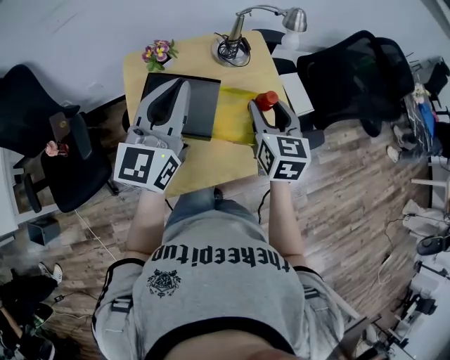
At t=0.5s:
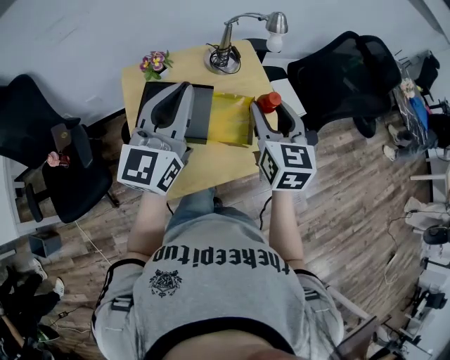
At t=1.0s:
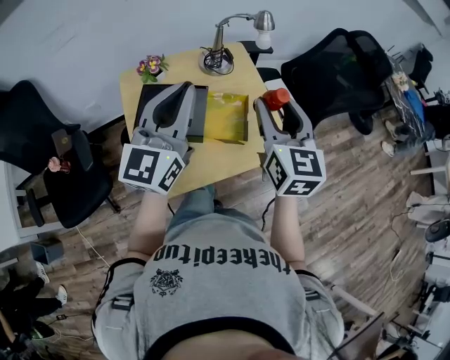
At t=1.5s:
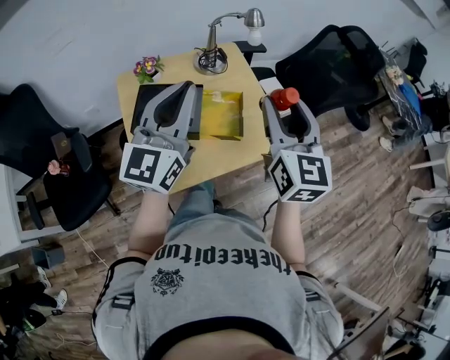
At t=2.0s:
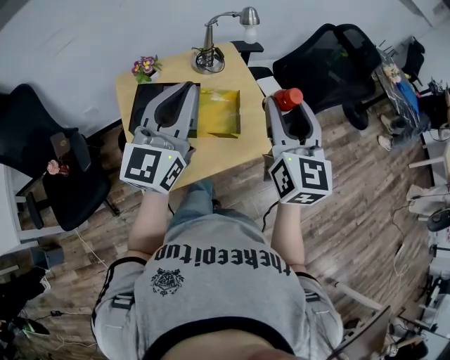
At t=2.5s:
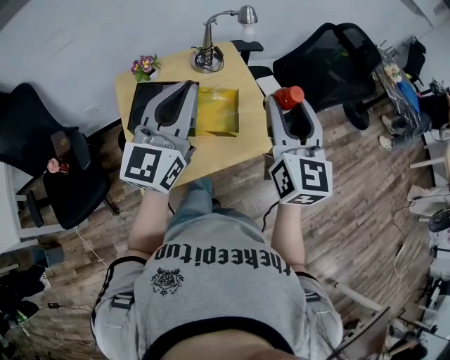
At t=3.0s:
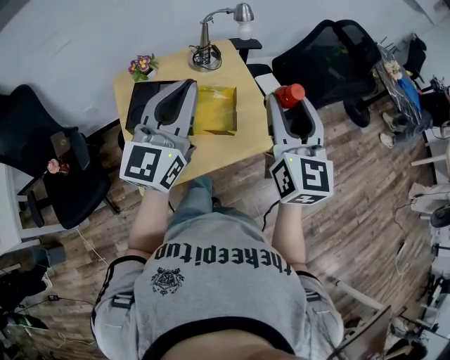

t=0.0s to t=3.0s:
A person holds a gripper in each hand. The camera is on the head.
t=0.0s to t=1.5s: The left gripper moves backward, to the right and upward, some 10 cm; the right gripper is displaced upward, backward and to the right by about 20 cm, and rotates about 20 degrees.
t=1.5s to t=3.0s: The grippers make only small movements.

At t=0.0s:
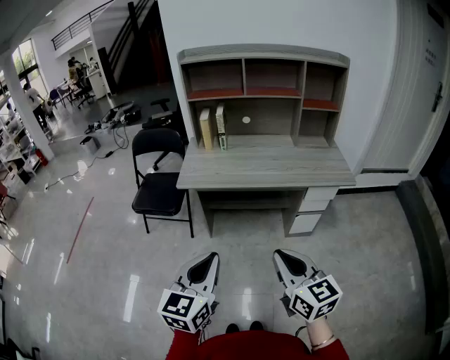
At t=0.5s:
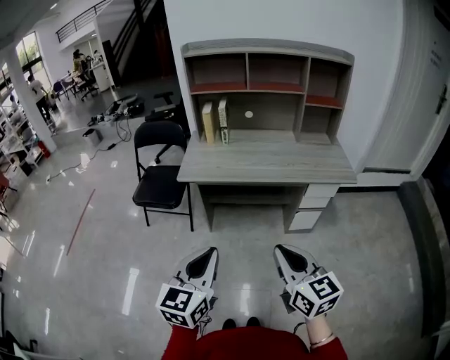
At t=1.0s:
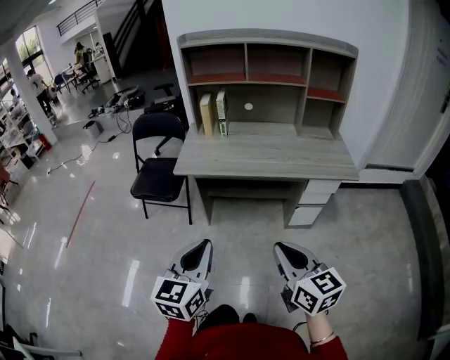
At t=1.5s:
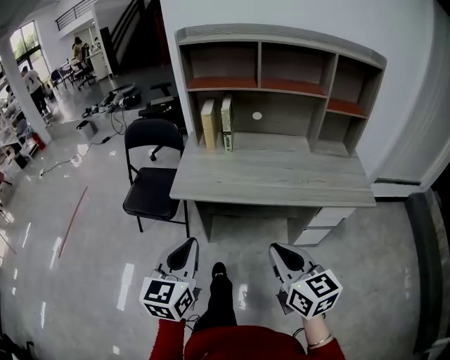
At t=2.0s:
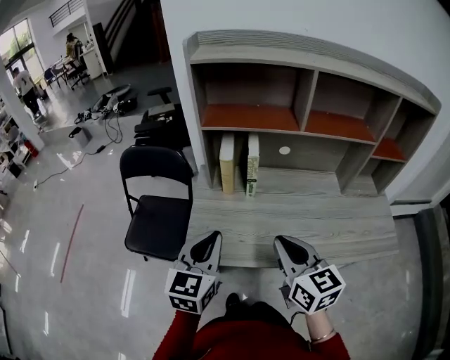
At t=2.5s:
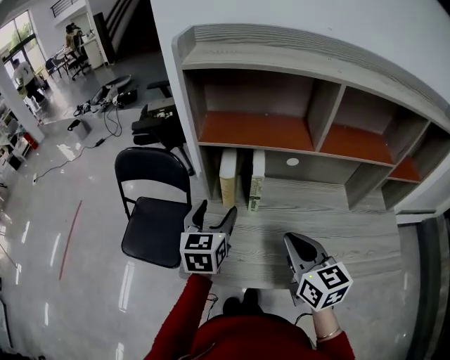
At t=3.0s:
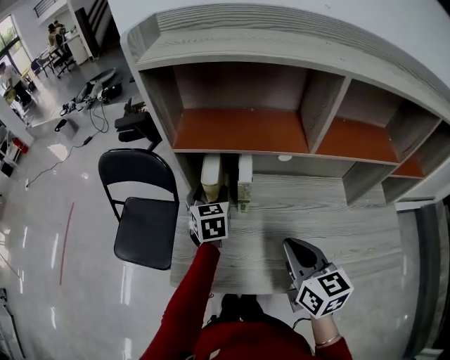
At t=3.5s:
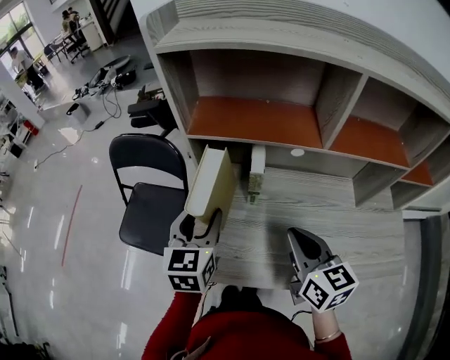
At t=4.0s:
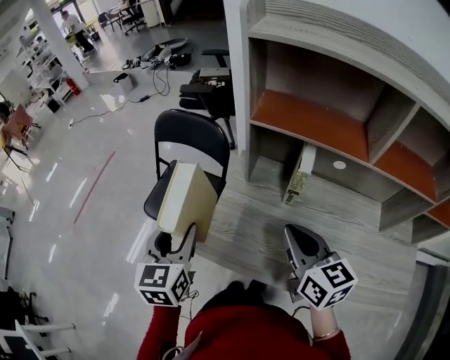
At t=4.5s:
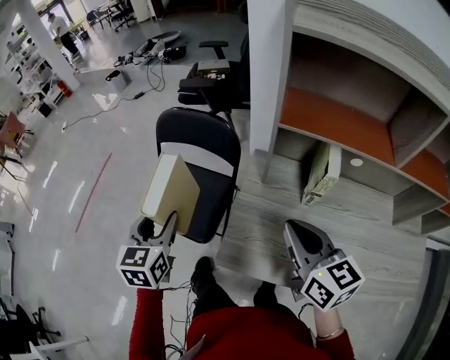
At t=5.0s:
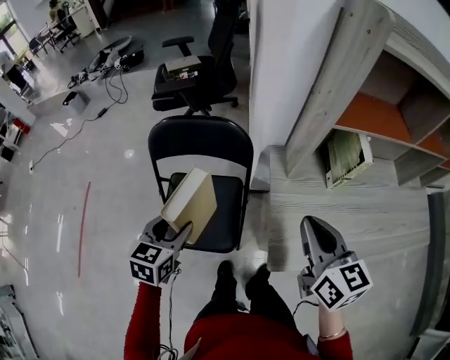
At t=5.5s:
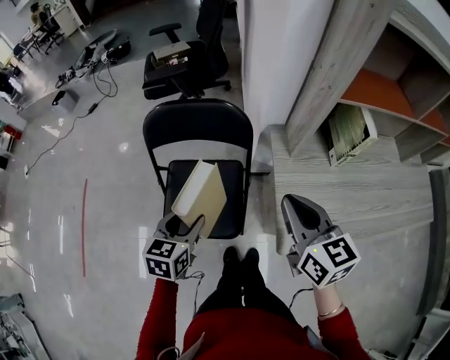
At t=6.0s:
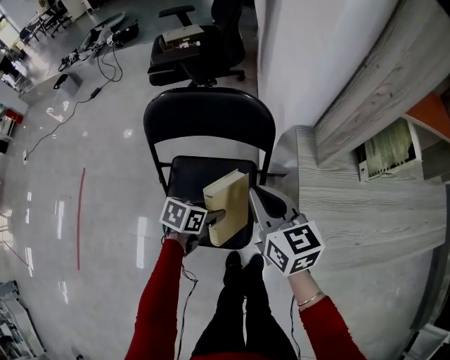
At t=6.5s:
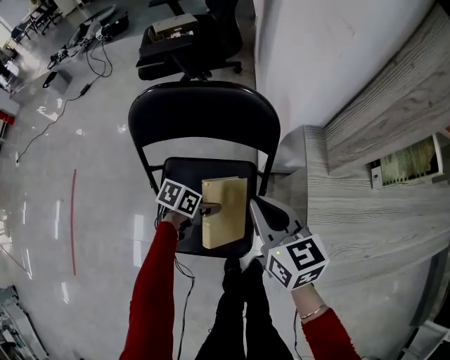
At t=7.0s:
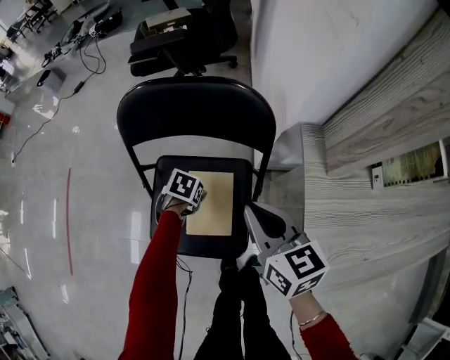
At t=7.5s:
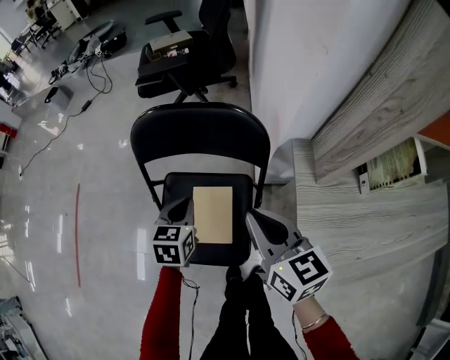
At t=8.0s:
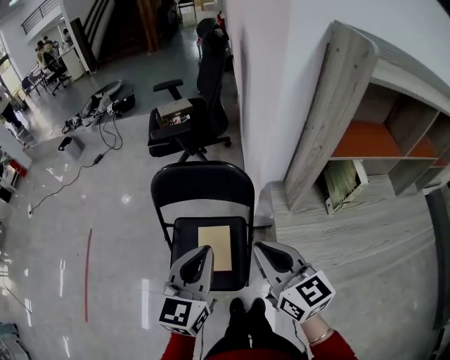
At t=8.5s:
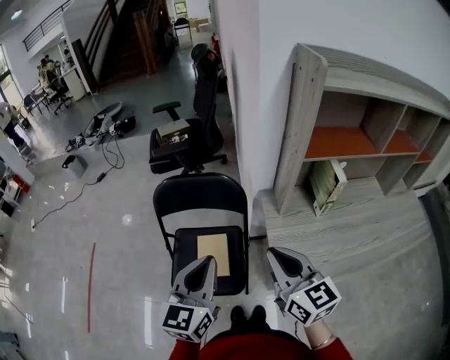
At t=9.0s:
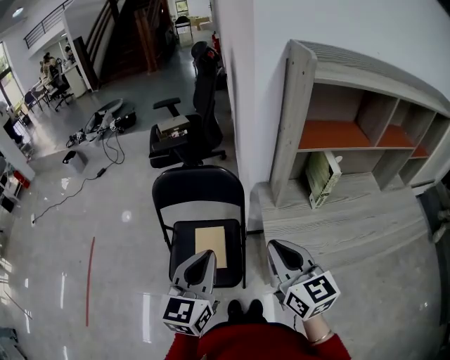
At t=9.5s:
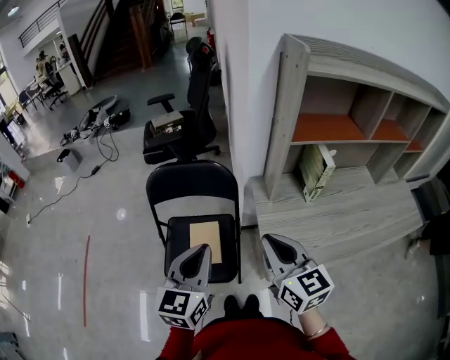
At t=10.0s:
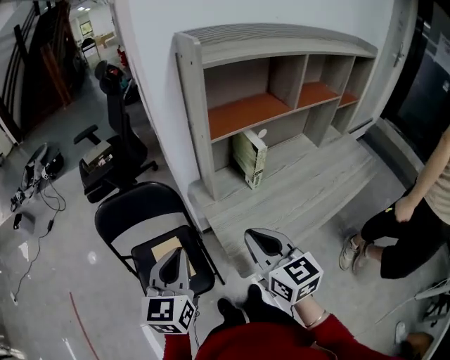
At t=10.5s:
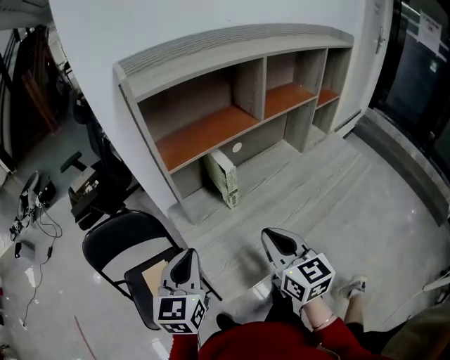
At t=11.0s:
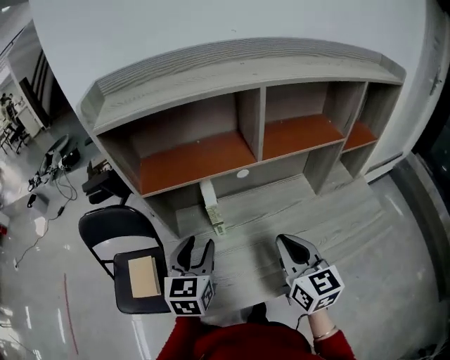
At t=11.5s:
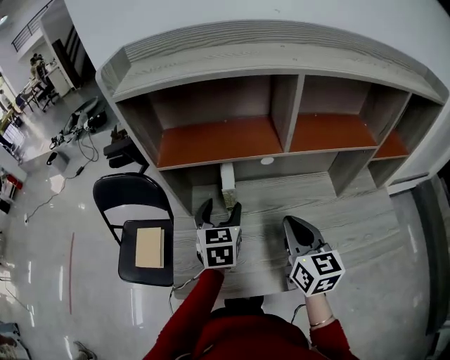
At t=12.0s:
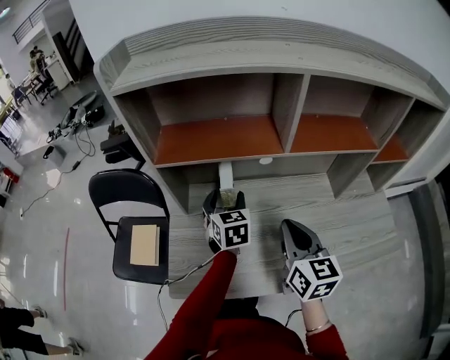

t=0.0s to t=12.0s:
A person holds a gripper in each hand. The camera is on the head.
t=0.0s to t=2.0s: The pair of grippers is taken forward, roughly 50 cm.
t=2.0s to t=4.0s: The left gripper moves to the left, roughly 15 cm, moves approximately 30 cm forward and comes back, changes its angle by approximately 30 degrees, and opens its fingers, while the right gripper goes some 10 cm forward.
t=4.0s to t=6.0s: The right gripper moves some 40 cm. Meanwhile the left gripper goes about 35 cm downward, and rotates roughly 70 degrees.
t=6.0s to t=8.0s: The left gripper is displaced upward by roughly 35 cm, tips its fingers upward by approximately 40 degrees, and closes. The right gripper moves upward, about 15 cm.
t=8.0s to t=10.0s: The left gripper heads to the right, covering roughly 10 cm. Meanwhile the right gripper goes some 15 cm to the right and backward, and changes its angle by roughly 30 degrees.
t=10.0s to t=12.0s: The left gripper shifts by approximately 40 cm, swivels about 30 degrees, and opens up. Meanwhile the right gripper moves approximately 30 cm.

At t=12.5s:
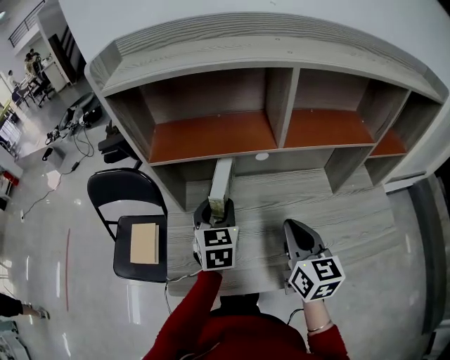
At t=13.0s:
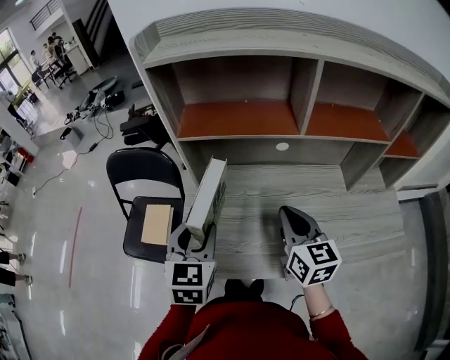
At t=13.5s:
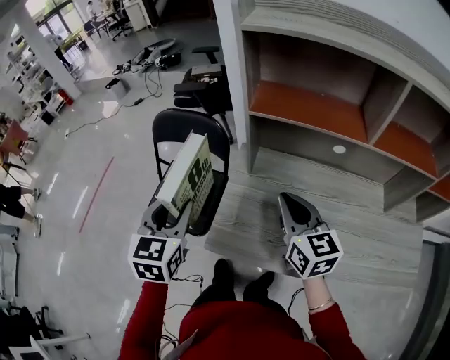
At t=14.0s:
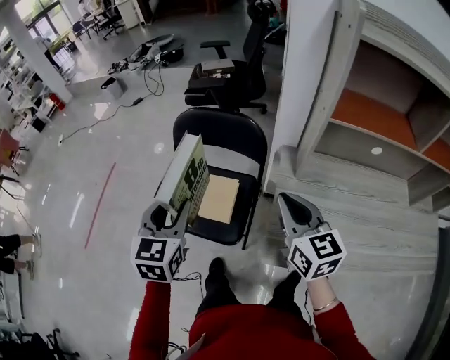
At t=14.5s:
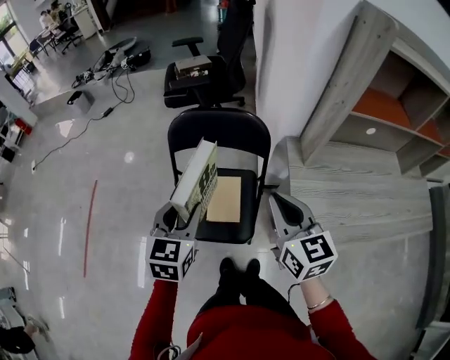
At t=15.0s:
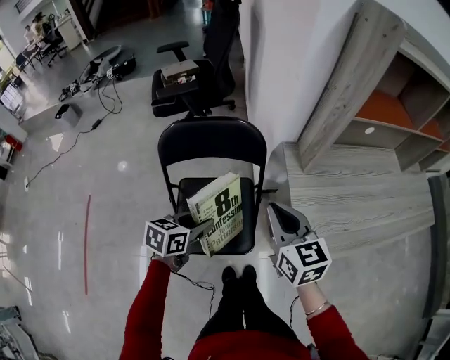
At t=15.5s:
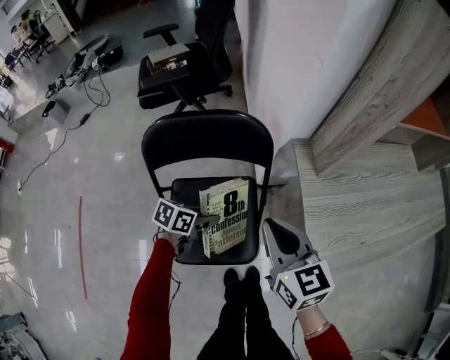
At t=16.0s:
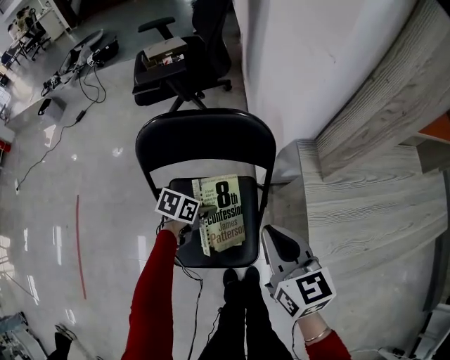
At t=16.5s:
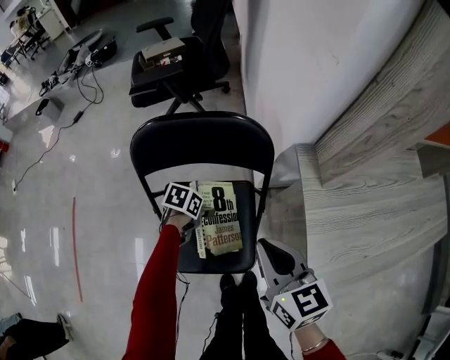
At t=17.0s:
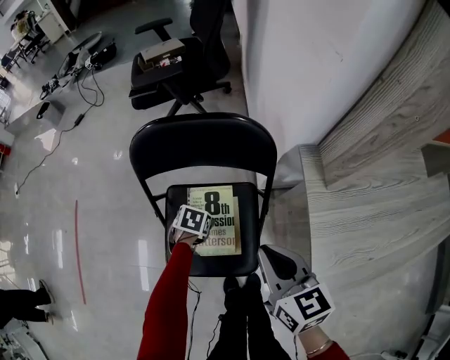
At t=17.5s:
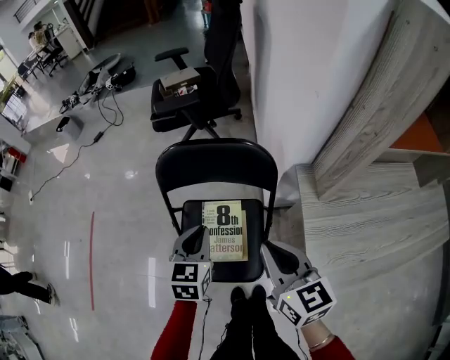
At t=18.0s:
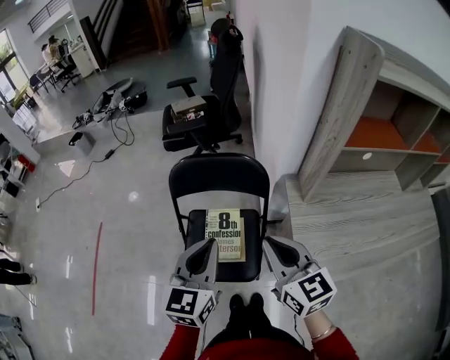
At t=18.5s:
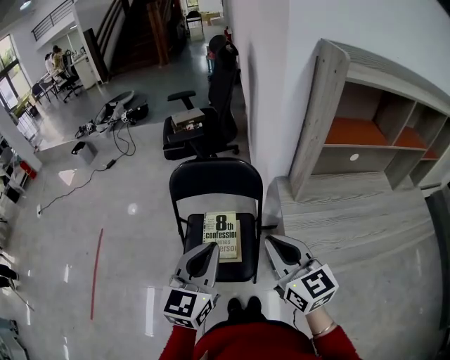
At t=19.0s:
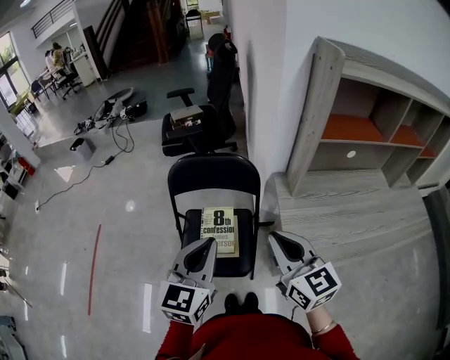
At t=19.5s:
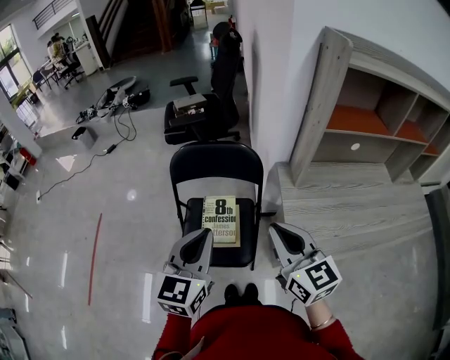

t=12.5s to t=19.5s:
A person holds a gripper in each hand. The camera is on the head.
t=12.5s to t=14.5s: The pair of grippers is taken to the left, some 50 cm.
t=14.5s to t=16.0s: The left gripper heads downward, covering approximately 30 cm, and swivels about 60 degrees; the right gripper is displaced downward by approximately 10 cm.
t=16.0s to t=17.5s: The left gripper travels upward by some 20 cm, rotates approximately 50 degrees, and closes its fingers.
t=17.5s to t=19.5s: The left gripper goes approximately 25 cm upward and backward, and swivels about 20 degrees; the right gripper moves upward and backward, approximately 15 cm.

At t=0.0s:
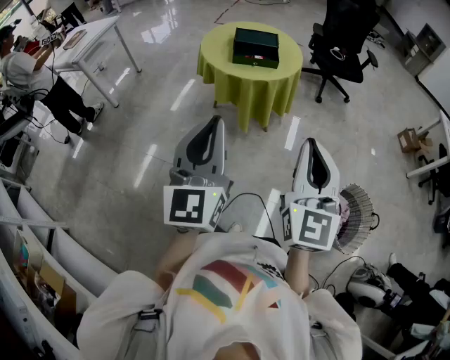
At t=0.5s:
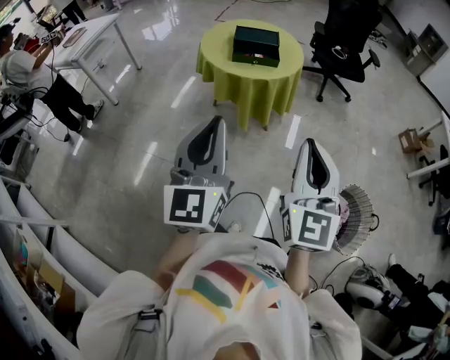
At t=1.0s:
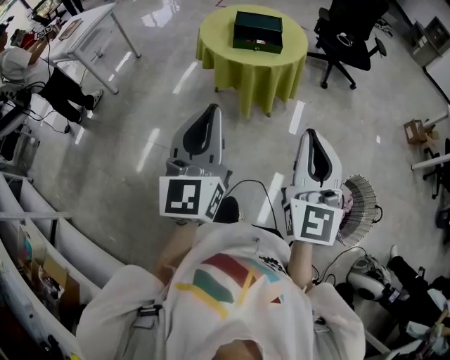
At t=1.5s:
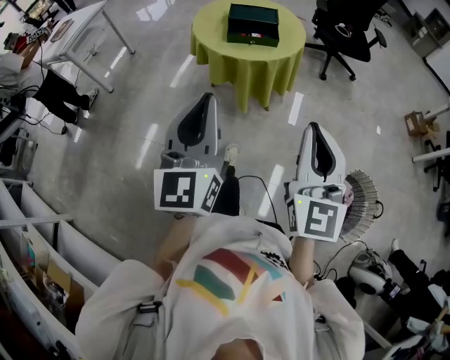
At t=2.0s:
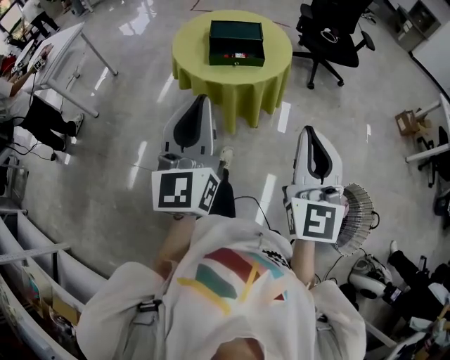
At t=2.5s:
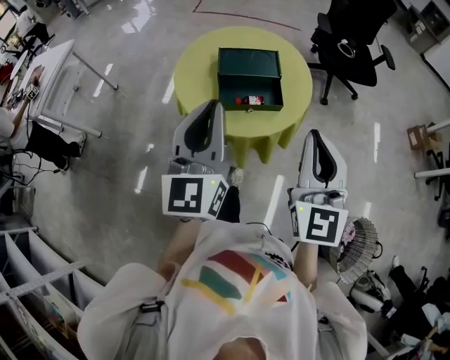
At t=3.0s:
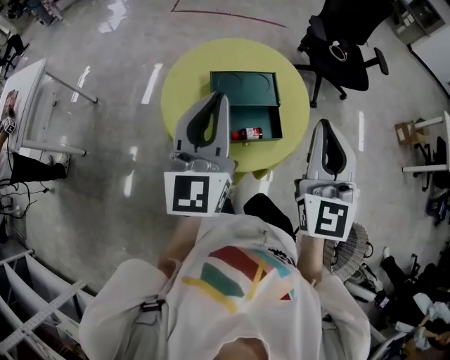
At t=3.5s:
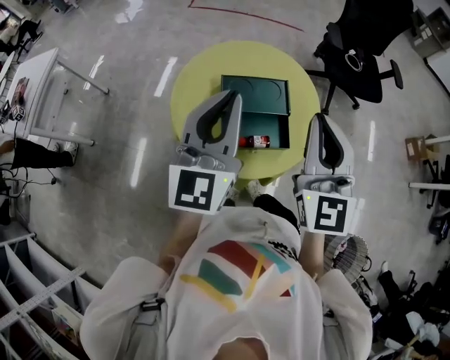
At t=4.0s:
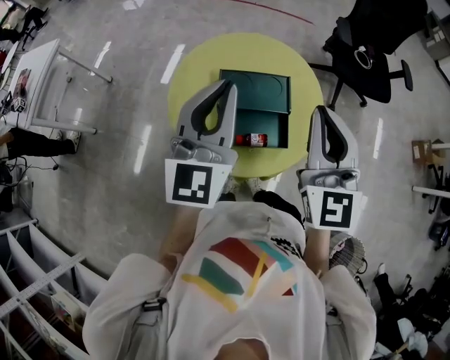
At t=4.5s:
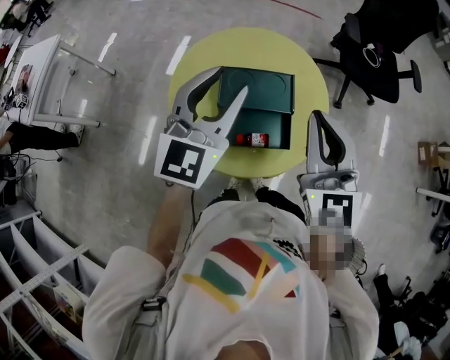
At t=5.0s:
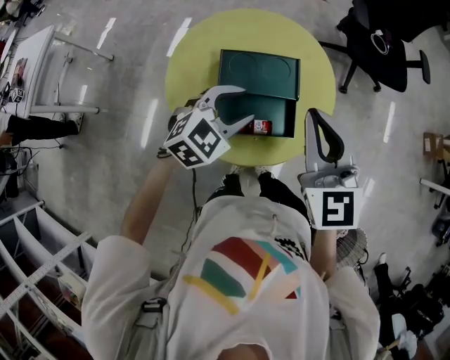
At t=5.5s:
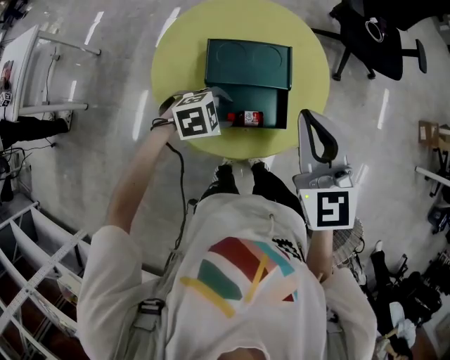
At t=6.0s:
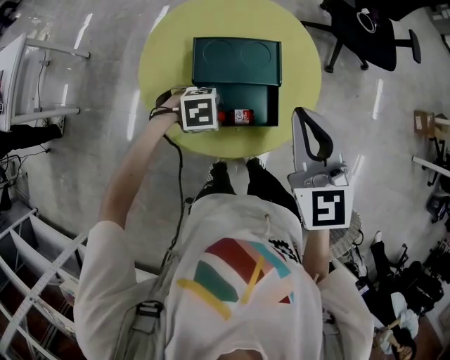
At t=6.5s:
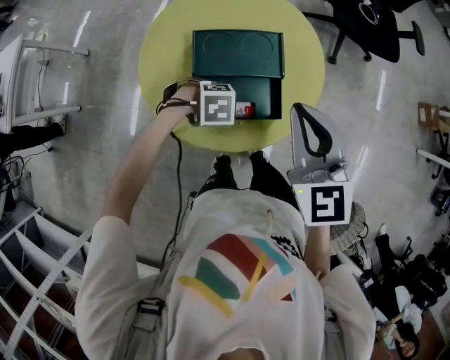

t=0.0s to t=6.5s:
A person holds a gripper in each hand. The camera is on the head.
t=0.0s to t=2.0s: Both grippers move forward, about 20 cm.
t=2.0s to t=4.5s: Both grippers are carried forward, roughly 50 cm. The left gripper rotates roughly 30 degrees, and opens its fingers.
t=4.5s to t=6.5s: The left gripper shifts some 35 cm downward, and angles its fingers downward, by roughly 70 degrees, while the right gripper moves downward, roughly 10 cm.
